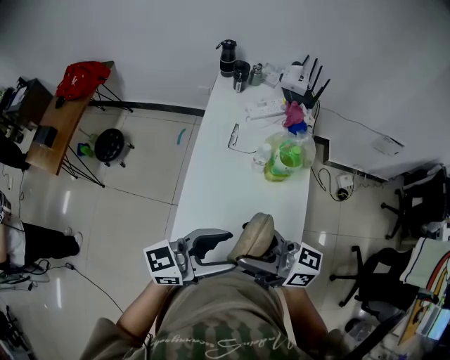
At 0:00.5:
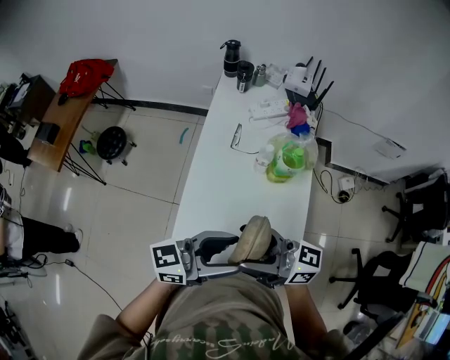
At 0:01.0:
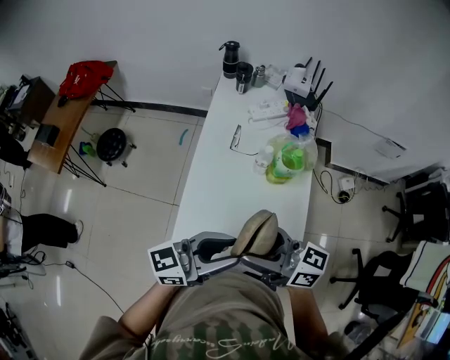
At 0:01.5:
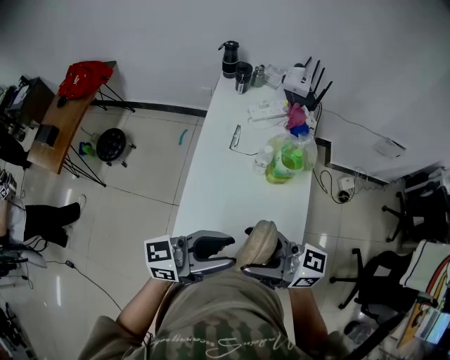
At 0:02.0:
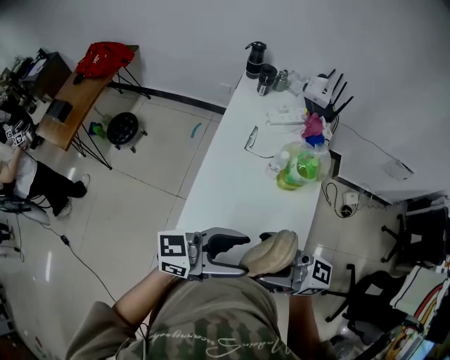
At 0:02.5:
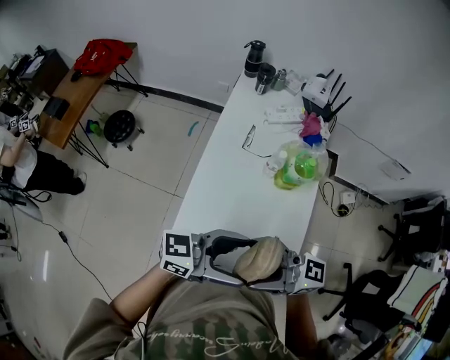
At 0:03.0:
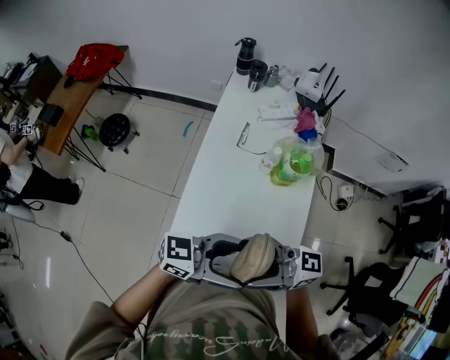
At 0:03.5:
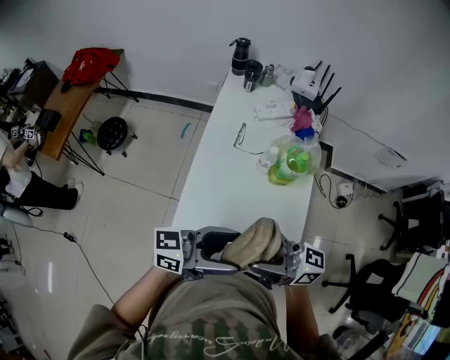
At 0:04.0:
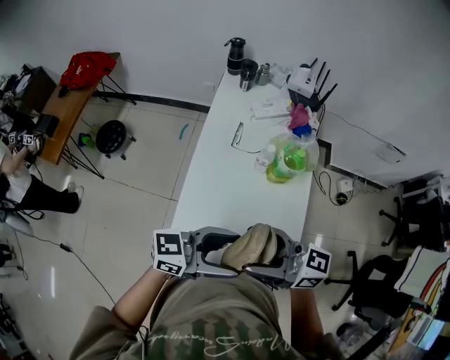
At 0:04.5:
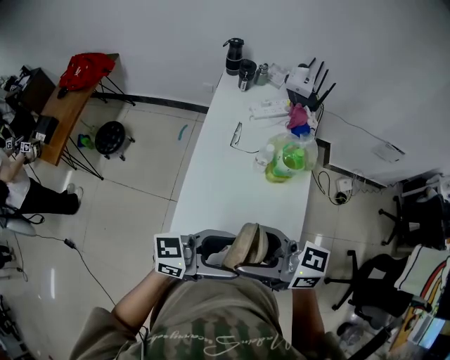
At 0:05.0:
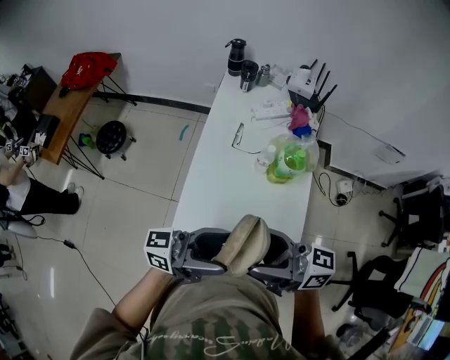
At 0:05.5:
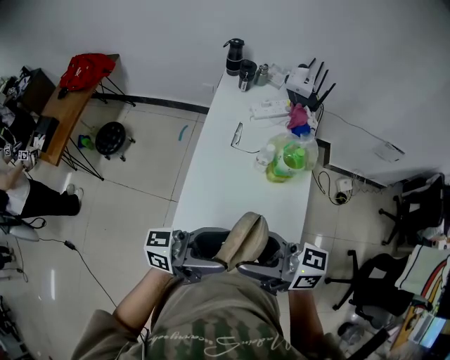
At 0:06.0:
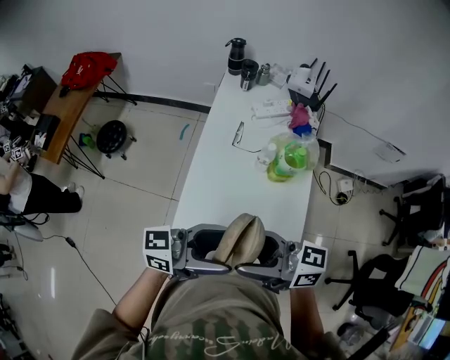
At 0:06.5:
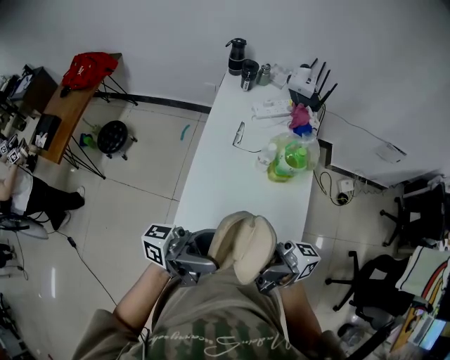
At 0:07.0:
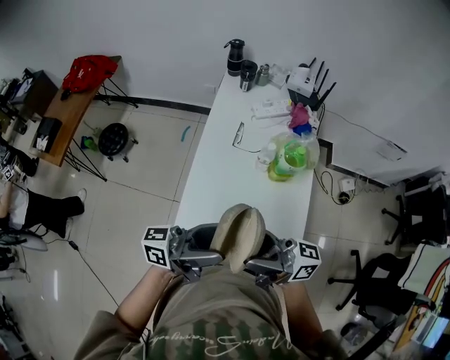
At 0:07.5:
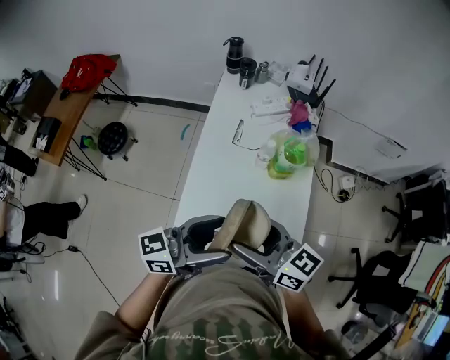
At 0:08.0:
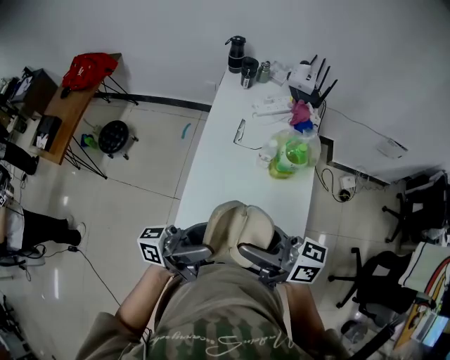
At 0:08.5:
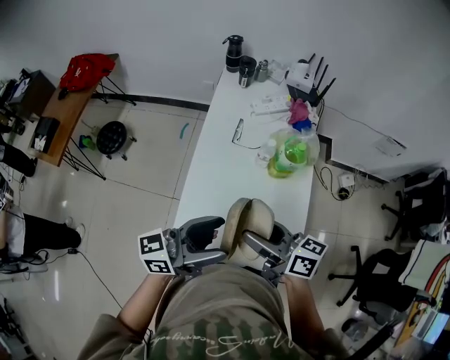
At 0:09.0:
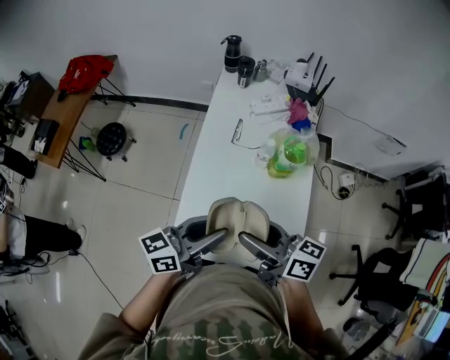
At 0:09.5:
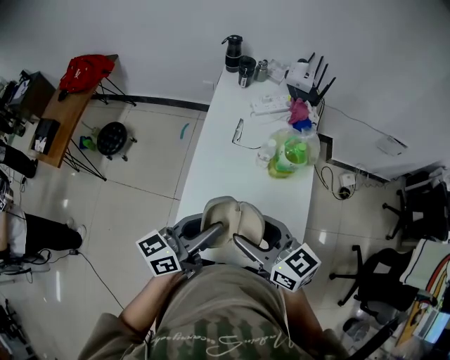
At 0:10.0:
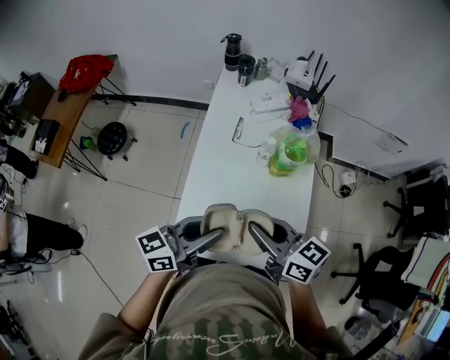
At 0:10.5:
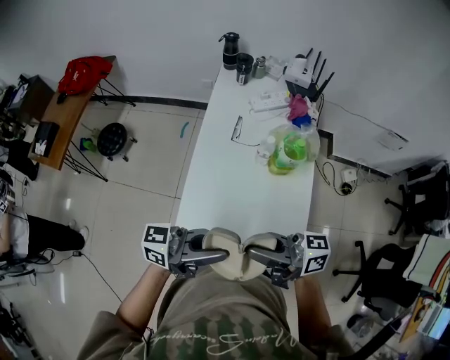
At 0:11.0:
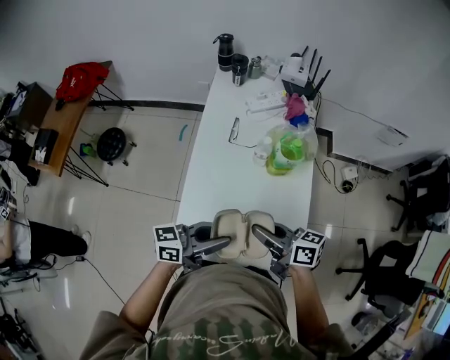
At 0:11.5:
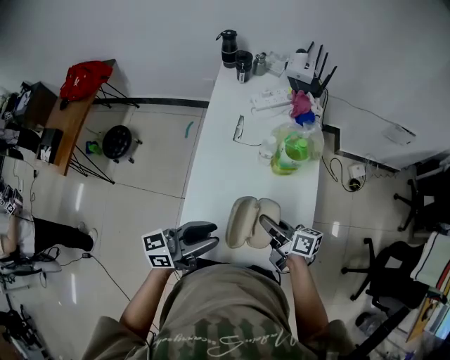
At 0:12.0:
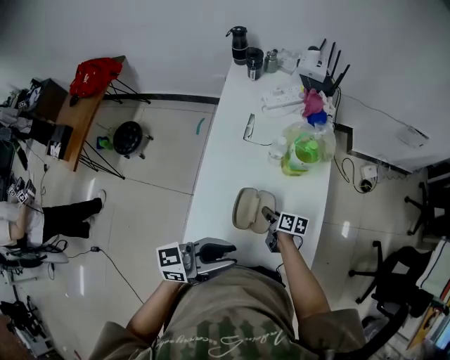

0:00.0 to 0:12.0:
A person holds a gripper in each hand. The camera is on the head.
0:00.0 to 0:02.0: The grippers stay close to where they were, moving slightly.
0:02.0 to 0:04.0: The grippers move only a little.
0:06.0 to 0:08.0: The left gripper turns by some 30 degrees.
0:08.0 to 0:10.0: The left gripper moves roughly 5 cm, changes its angle by roughly 40 degrees, and closes its fingers. The right gripper ends up approximately 5 cm from where it was, changes its angle by some 20 degrees, and closes up.
0:10.0 to 0:12.0: The right gripper goes approximately 35 cm downward, and changes its angle by about 50 degrees. The left gripper shifts by roughly 5 cm.

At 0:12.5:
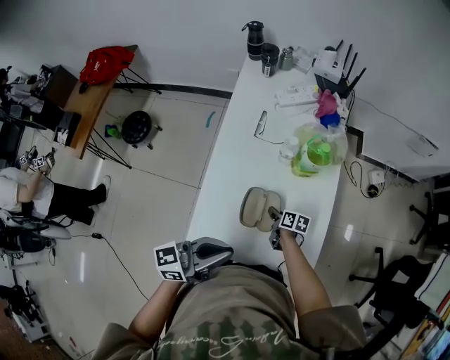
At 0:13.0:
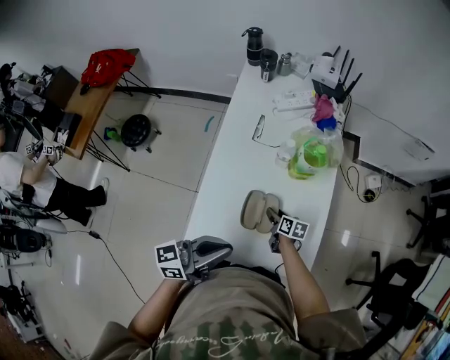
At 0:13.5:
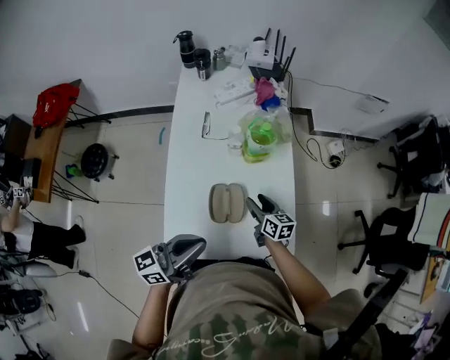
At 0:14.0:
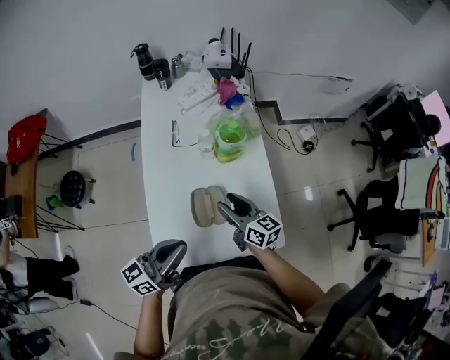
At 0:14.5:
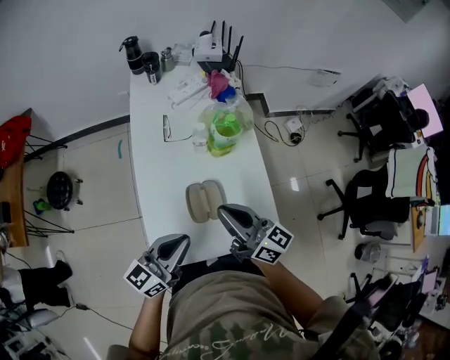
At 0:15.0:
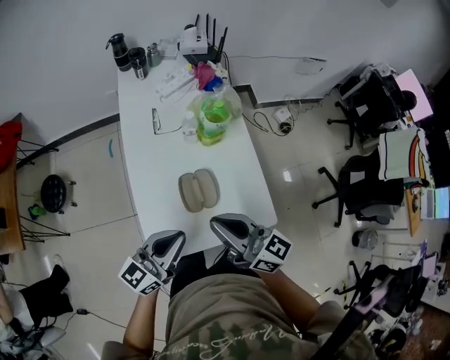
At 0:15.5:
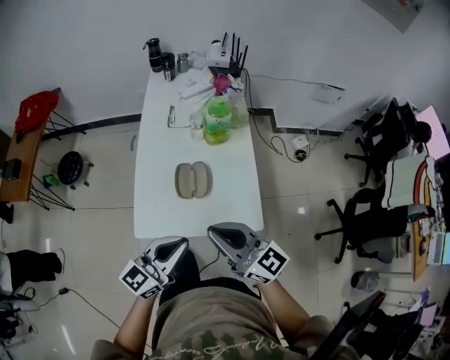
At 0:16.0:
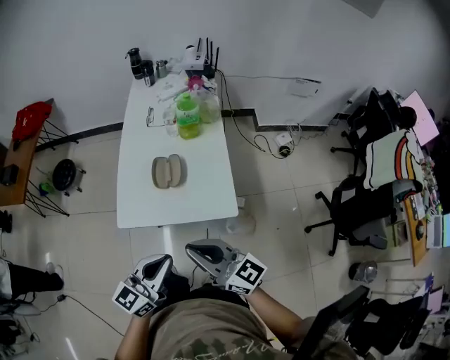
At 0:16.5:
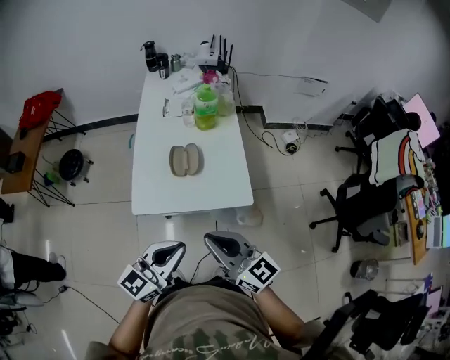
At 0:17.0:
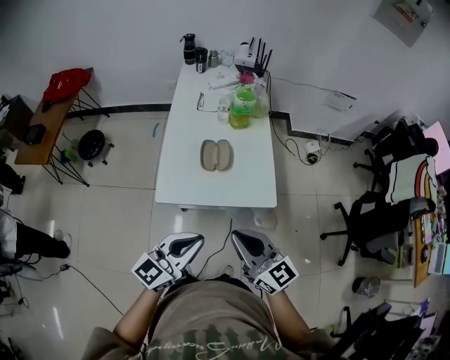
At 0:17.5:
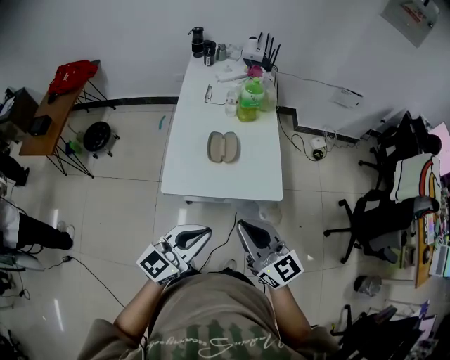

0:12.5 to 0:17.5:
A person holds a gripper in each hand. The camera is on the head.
0:12.5 to 0:15.0: The right gripper is displaced upward by roughly 40 cm, tilts its fingers about 50 degrees upward, and opens and closes again.
0:15.0 to 0:17.5: Both grippers move backward, some 30 cm. The right gripper turns by about 20 degrees.

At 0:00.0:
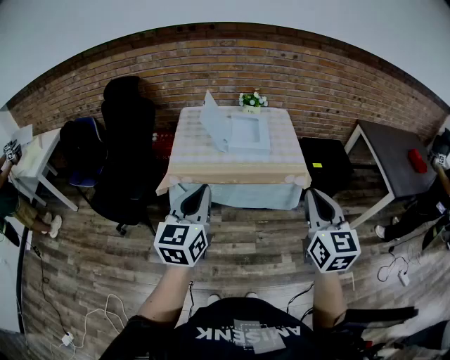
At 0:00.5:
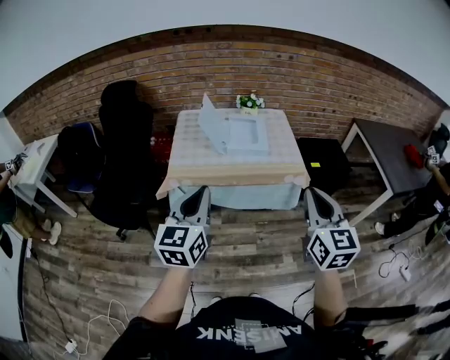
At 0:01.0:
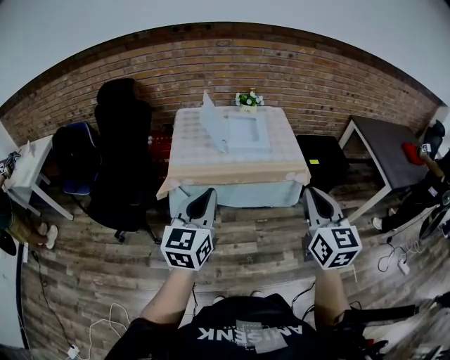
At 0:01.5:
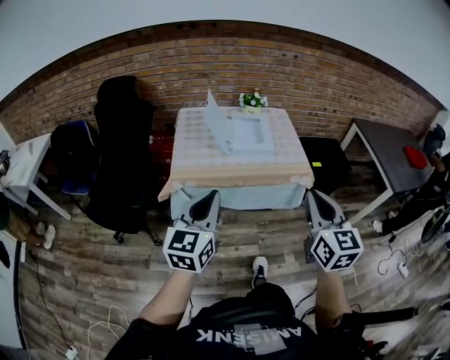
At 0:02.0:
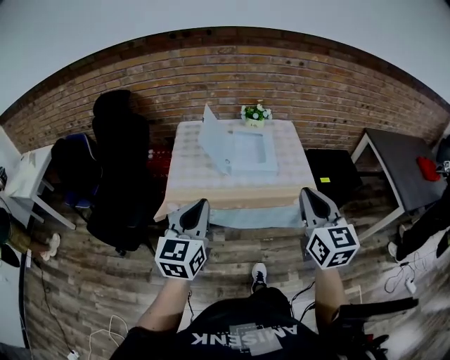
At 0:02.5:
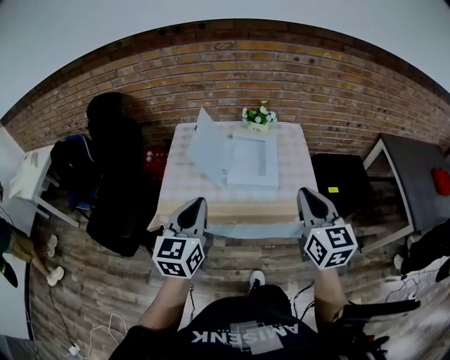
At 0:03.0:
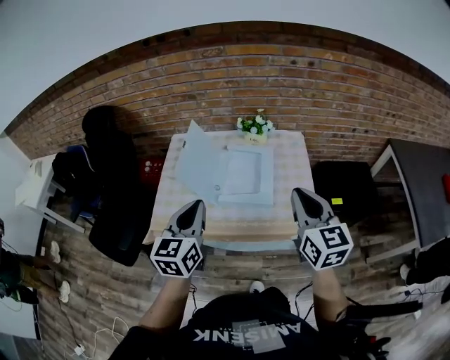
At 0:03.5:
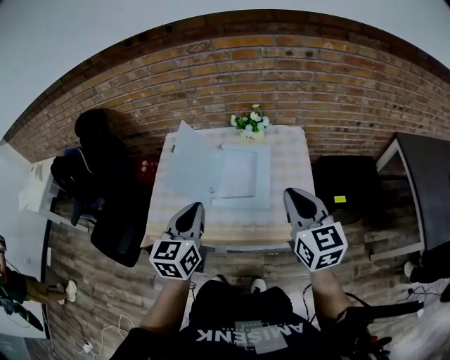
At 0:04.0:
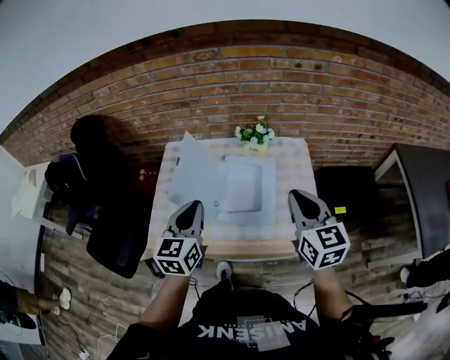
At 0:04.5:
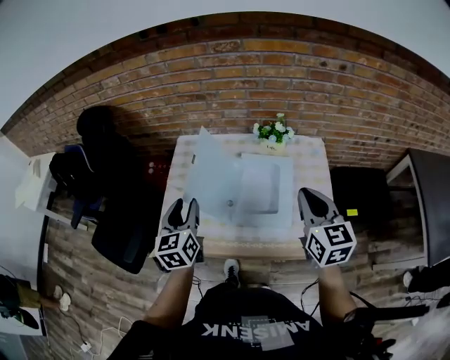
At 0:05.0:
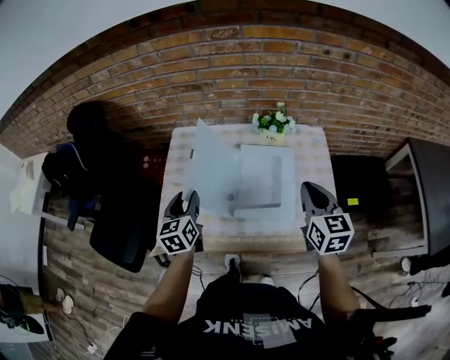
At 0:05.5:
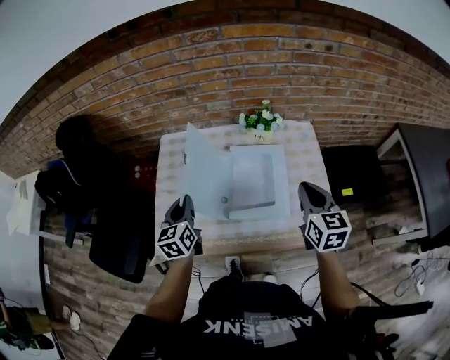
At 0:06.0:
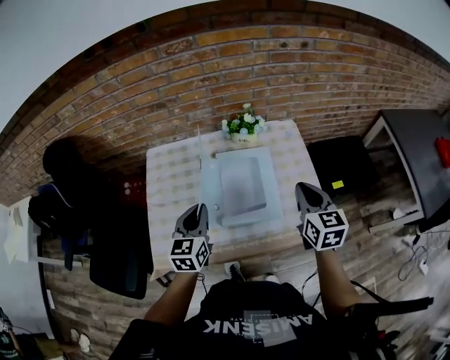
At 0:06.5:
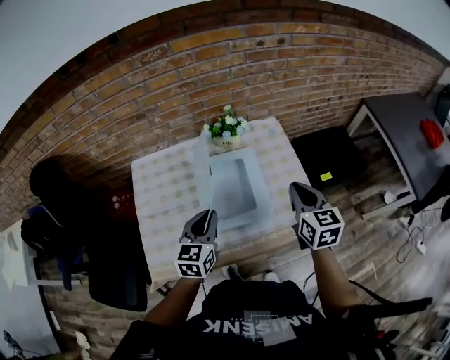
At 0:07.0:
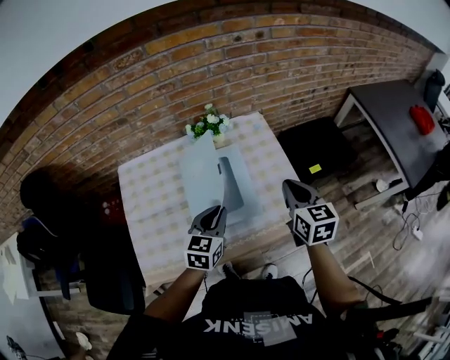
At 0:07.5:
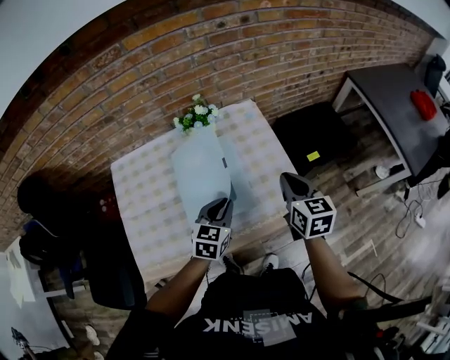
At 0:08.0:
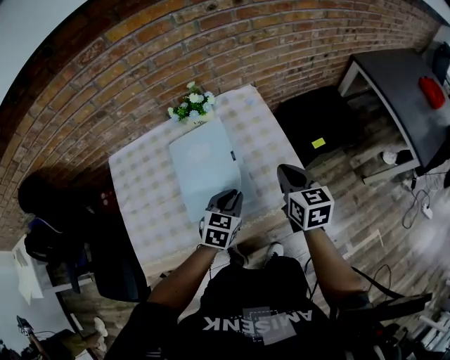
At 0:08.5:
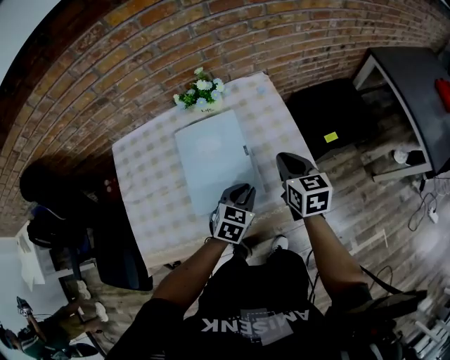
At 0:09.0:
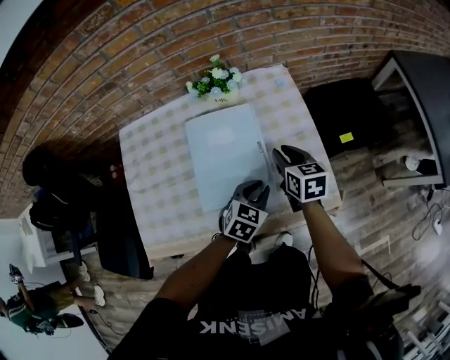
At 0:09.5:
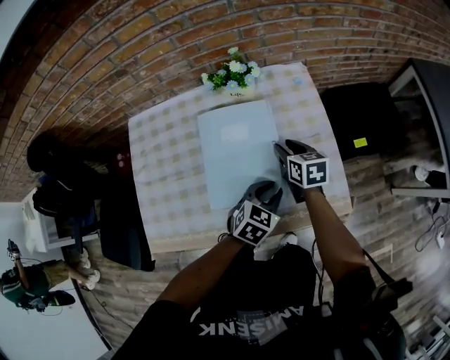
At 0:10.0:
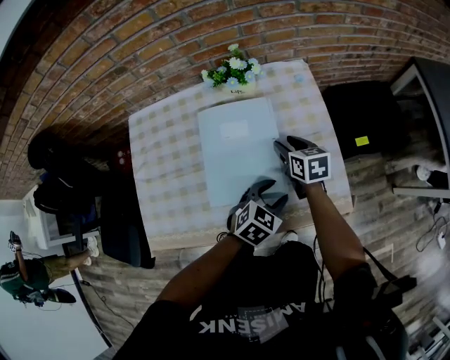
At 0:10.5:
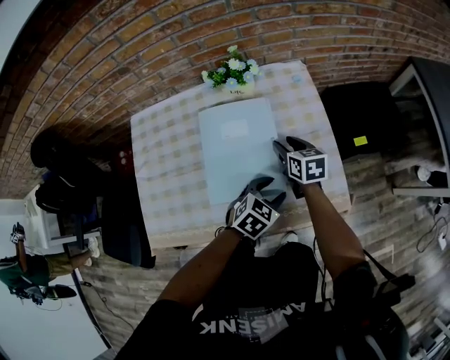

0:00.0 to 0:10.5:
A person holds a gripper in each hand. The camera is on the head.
0:00.0 to 0:02.0: Both grippers travel together forward, about 15 cm.
0:02.0 to 0:04.0: The grippers both shift forward by approximately 35 cm.
0:04.0 to 0:06.5: The two grippers go roughly 10 cm downward. The right gripper rotates about 20 degrees. Meanwhile the left gripper changes its angle by approximately 20 degrees, and opens, then closes again.
0:06.5 to 0:08.5: The right gripper is displaced downward and forward by roughly 15 cm, while the left gripper goes some 25 cm to the right and downward, and rotates some 30 degrees.
0:08.5 to 0:10.5: The left gripper opens its fingers. The right gripper shifts approximately 15 cm downward, to the left and forward, and opens.
